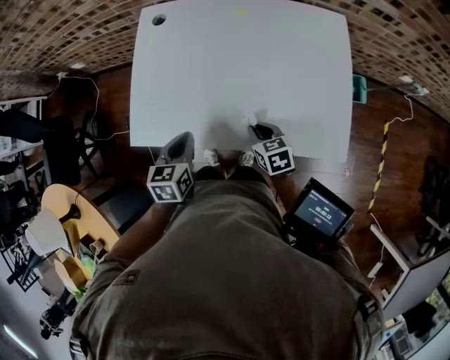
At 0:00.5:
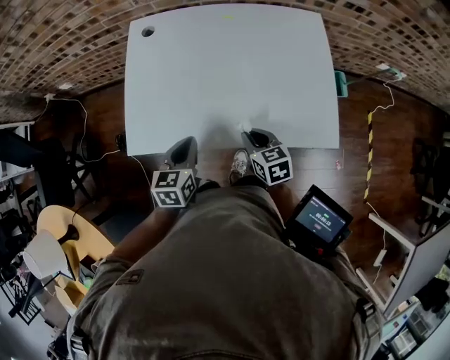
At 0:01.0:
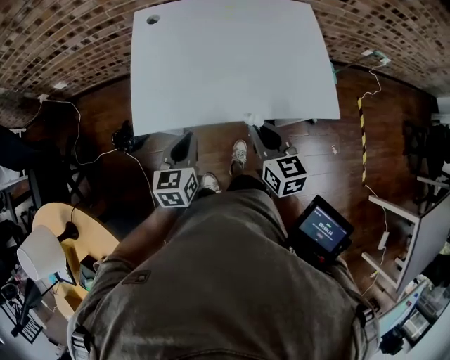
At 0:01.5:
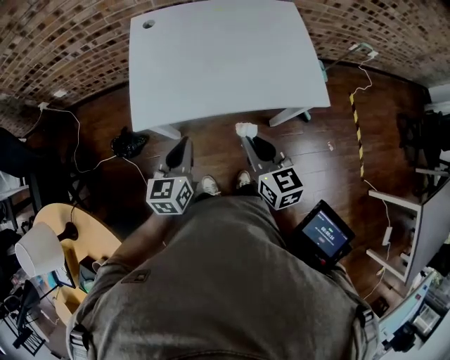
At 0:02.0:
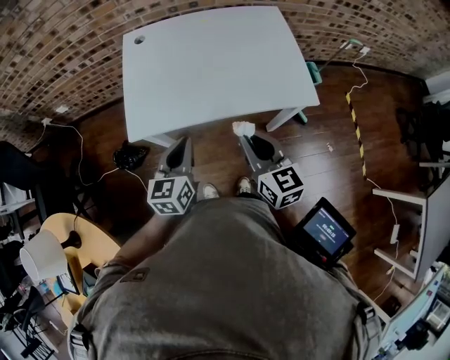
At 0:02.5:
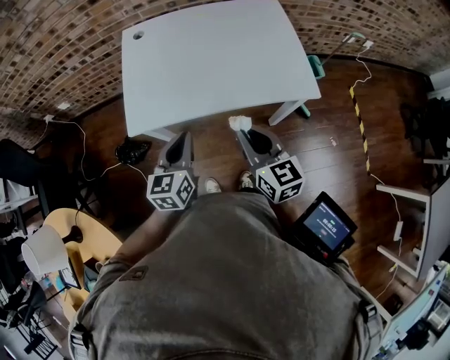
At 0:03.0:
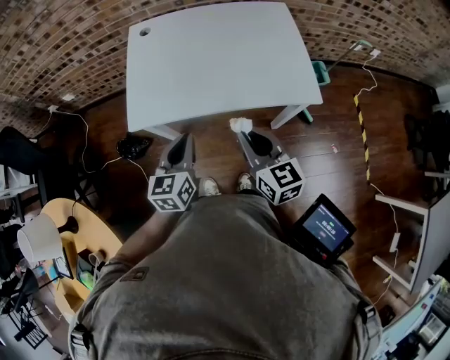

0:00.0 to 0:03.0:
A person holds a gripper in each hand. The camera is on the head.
0:00.0 to 0:01.5: The right gripper heads upward and backward, covering roughly 25 cm, and rotates about 30 degrees, while the left gripper shifts some 15 cm backward and upward, and swivels approximately 20 degrees.
0:01.5 to 0:03.0: The left gripper moves to the right, some 5 cm.

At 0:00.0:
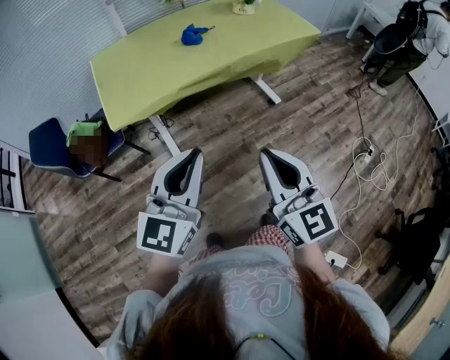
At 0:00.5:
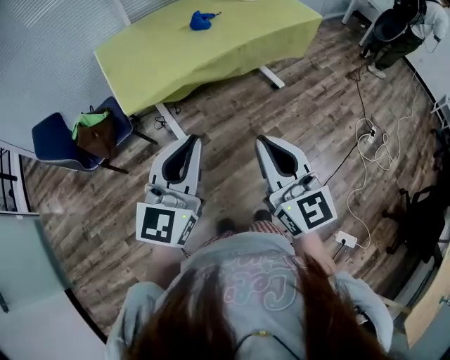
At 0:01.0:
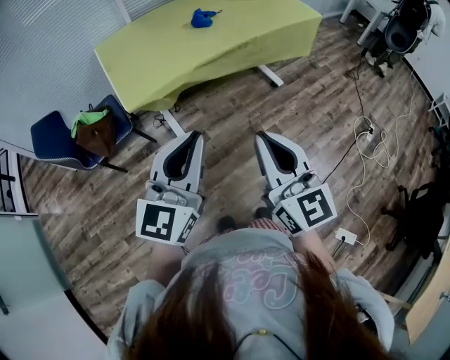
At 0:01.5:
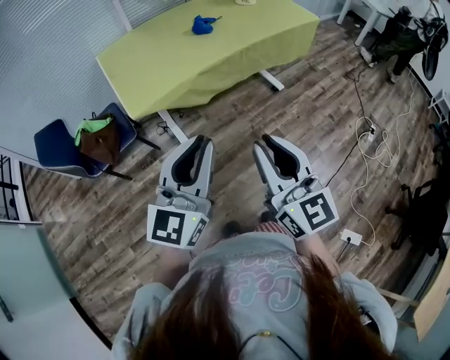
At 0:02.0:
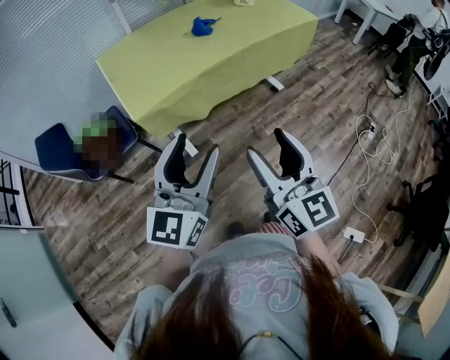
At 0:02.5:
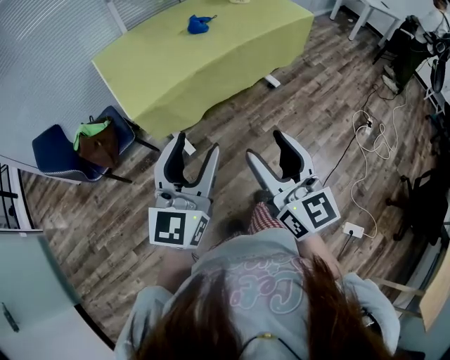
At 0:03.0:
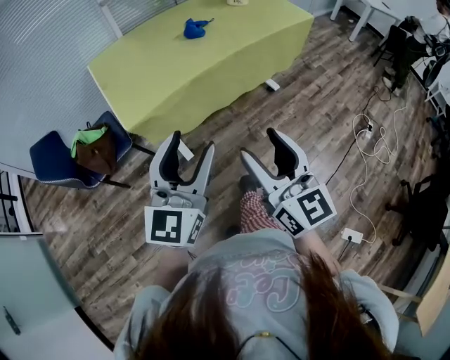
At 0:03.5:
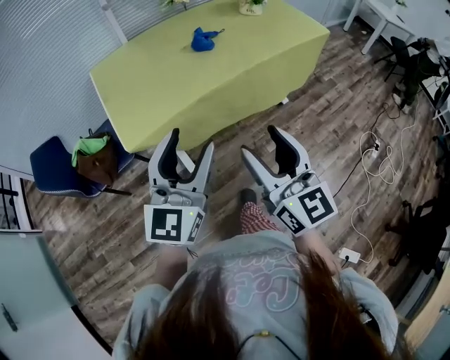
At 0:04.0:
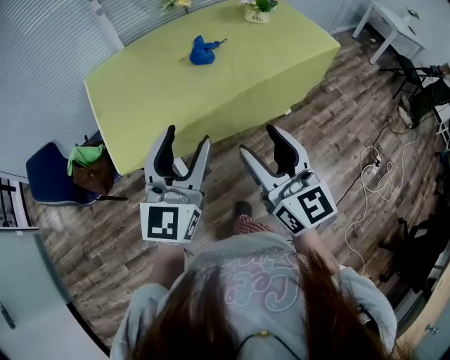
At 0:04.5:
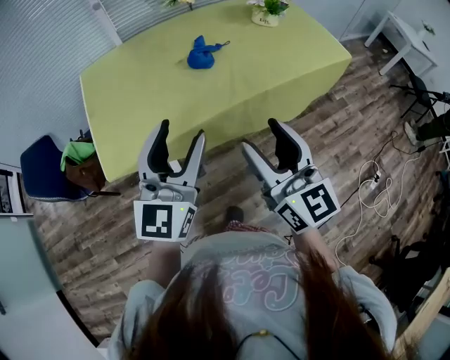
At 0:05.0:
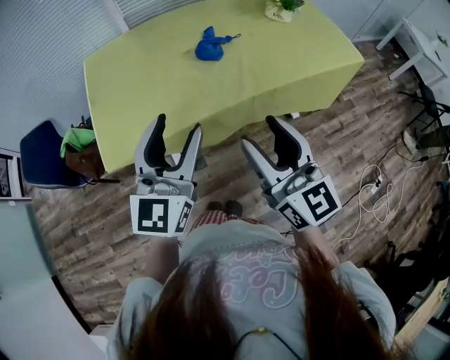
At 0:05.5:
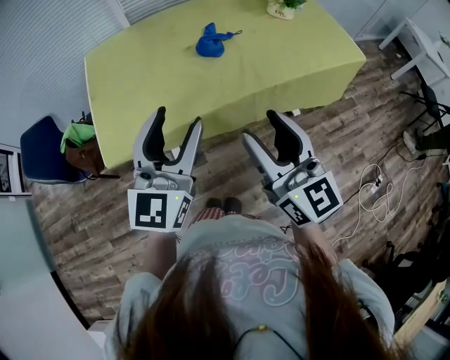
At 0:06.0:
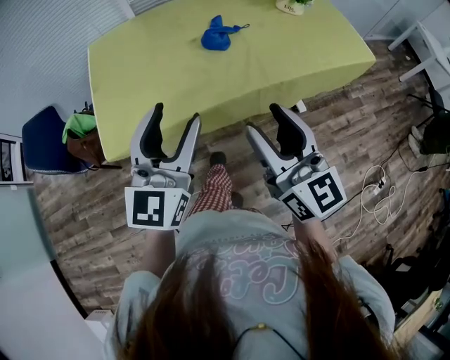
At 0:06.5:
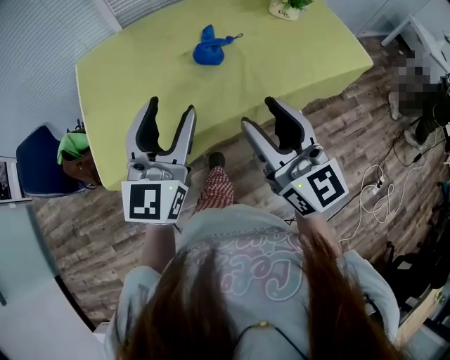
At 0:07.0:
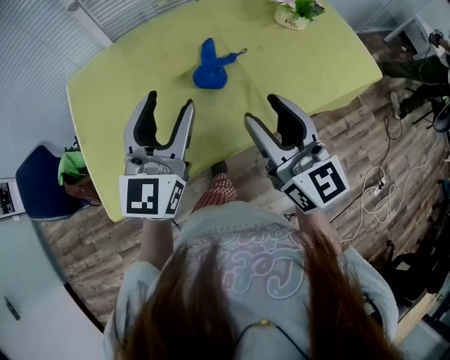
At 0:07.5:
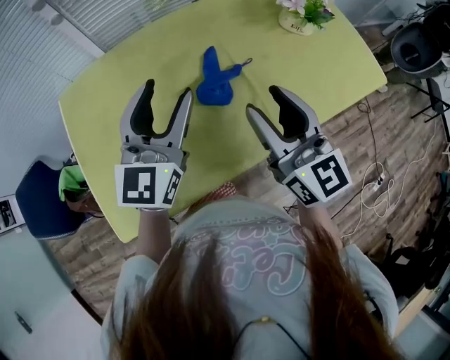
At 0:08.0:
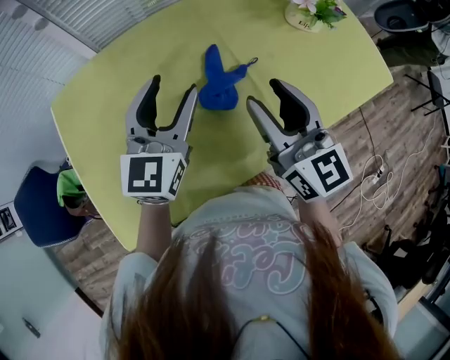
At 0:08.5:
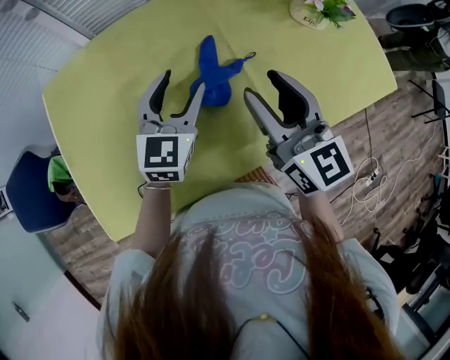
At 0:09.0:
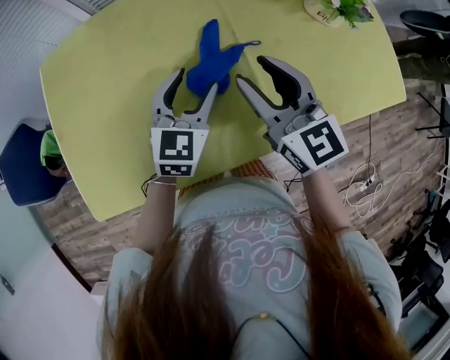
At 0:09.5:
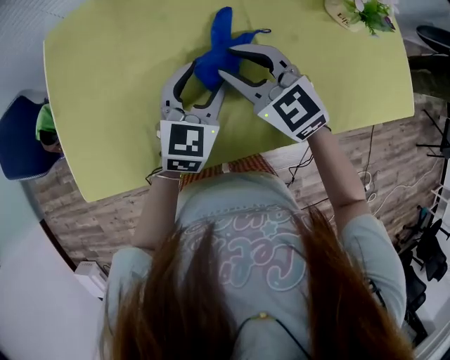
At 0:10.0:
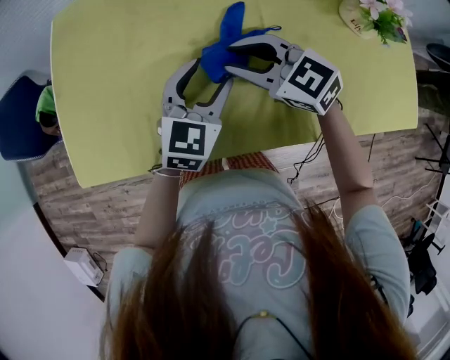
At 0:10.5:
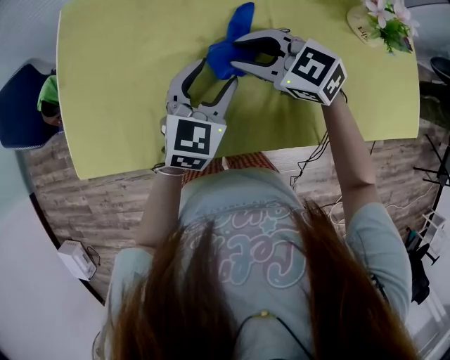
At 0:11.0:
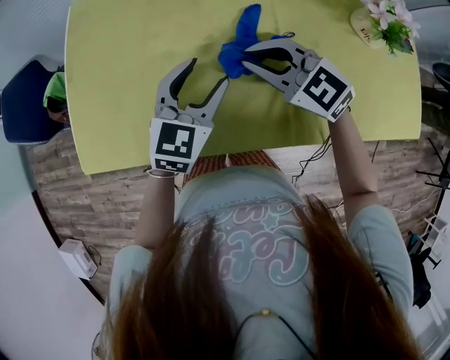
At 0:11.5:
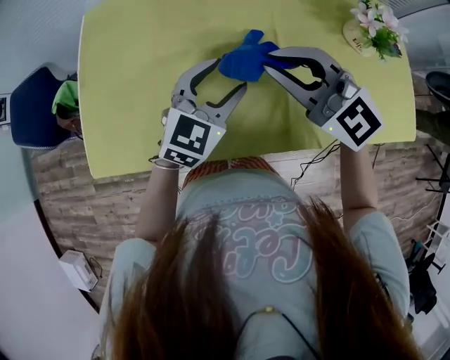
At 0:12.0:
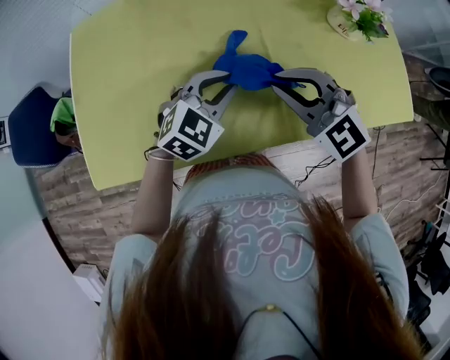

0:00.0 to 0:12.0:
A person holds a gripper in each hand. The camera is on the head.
0:00.0 to 0:02.0: The grippers both shift to the left by some 10 cm. The right gripper opens its fingers. Meanwhile the left gripper opens its fingers.
0:02.0 to 0:04.0: The two grippers go approximately 25 cm forward.
0:04.0 to 0:06.0: Both grippers travel together forward, about 10 cm.
0:06.0 to 0:08.0: The two grippers go roughly 35 cm forward.
0:08.0 to 0:10.0: Both grippers move downward, roughly 15 cm. The right gripper rotates roughly 60 degrees, while the left gripper rotates approximately 20 degrees.
0:10.0 to 0:12.0: The left gripper changes its angle by some 30 degrees, and closes. Meanwhile the right gripper goes roughly 10 cm backward and upward, and rotates about 30 degrees.

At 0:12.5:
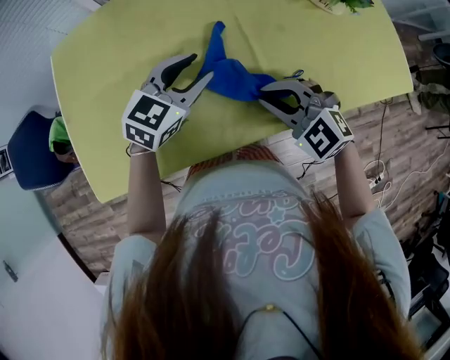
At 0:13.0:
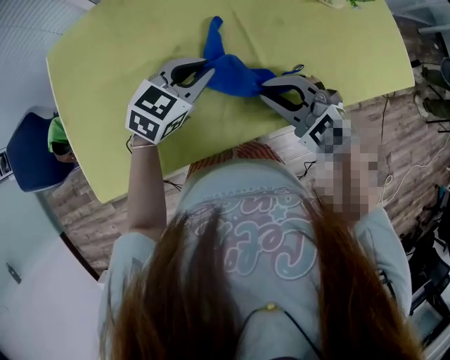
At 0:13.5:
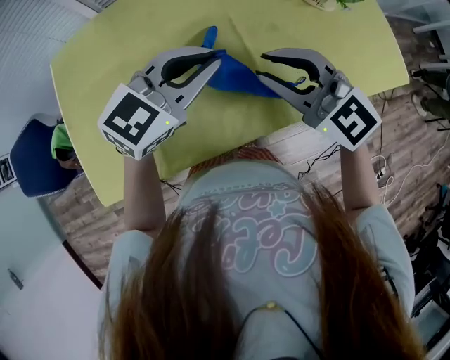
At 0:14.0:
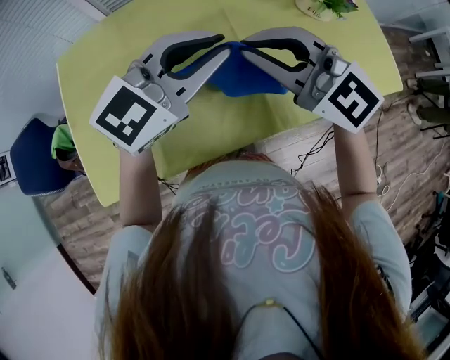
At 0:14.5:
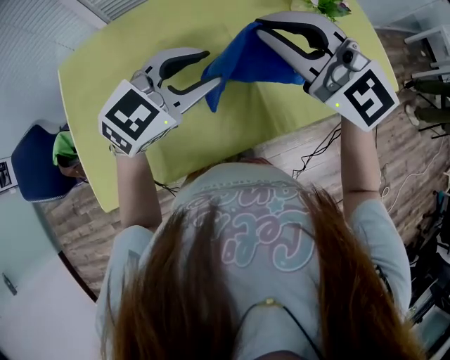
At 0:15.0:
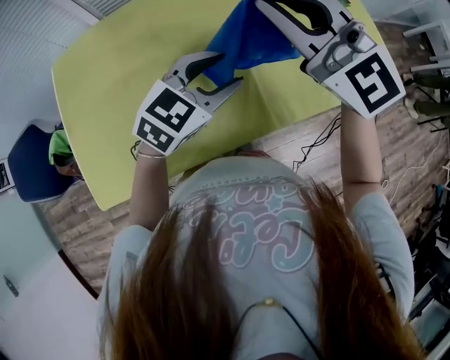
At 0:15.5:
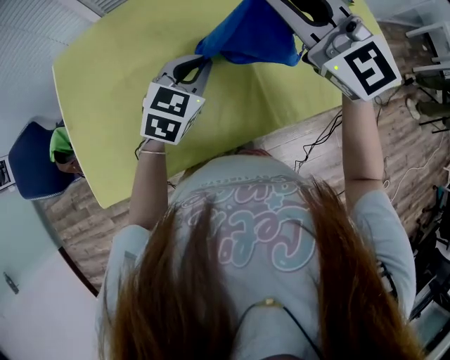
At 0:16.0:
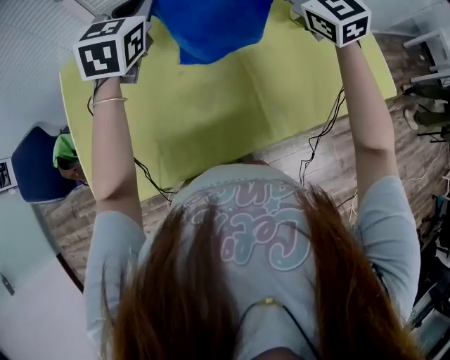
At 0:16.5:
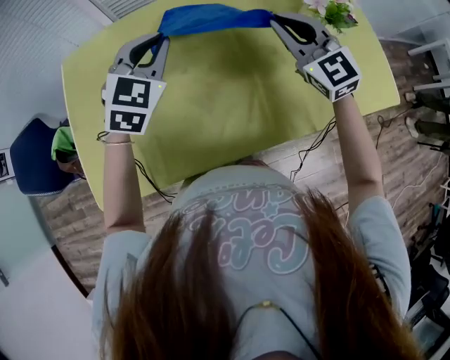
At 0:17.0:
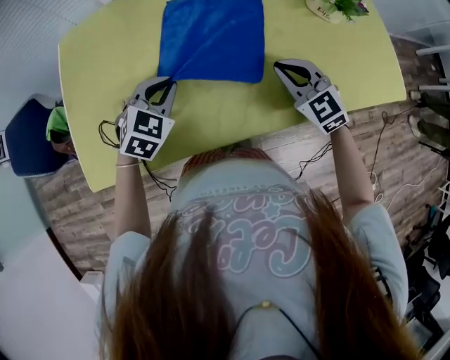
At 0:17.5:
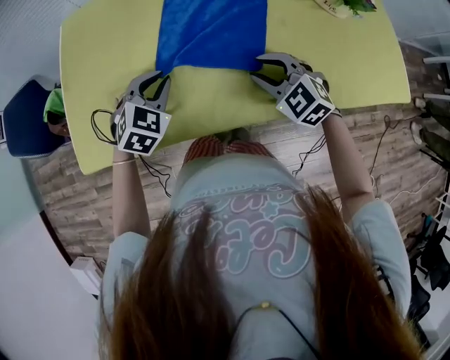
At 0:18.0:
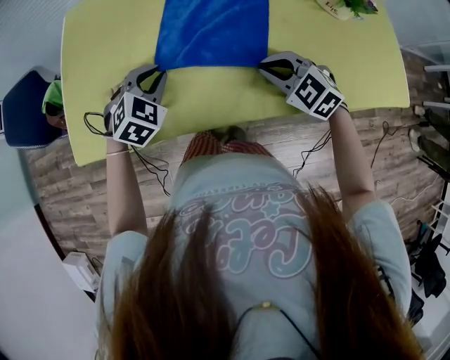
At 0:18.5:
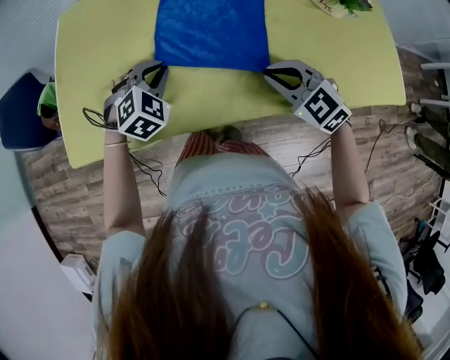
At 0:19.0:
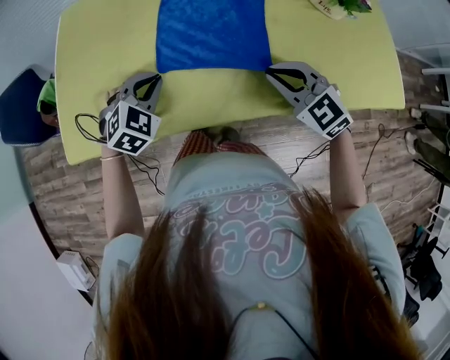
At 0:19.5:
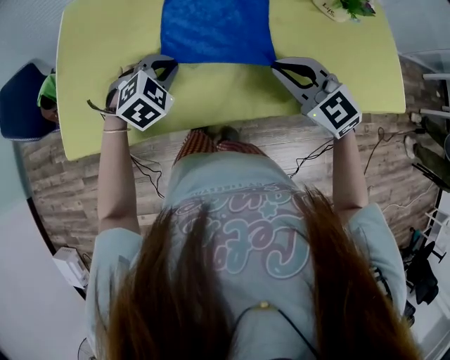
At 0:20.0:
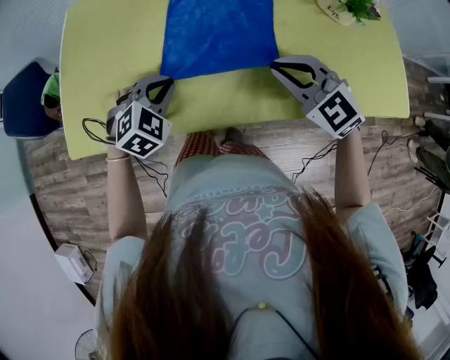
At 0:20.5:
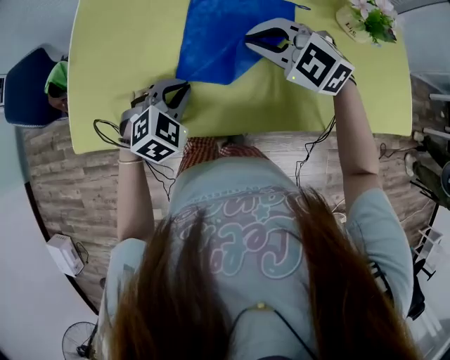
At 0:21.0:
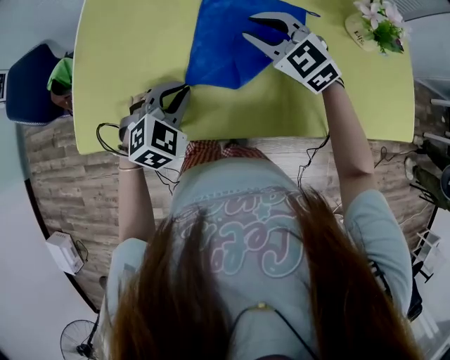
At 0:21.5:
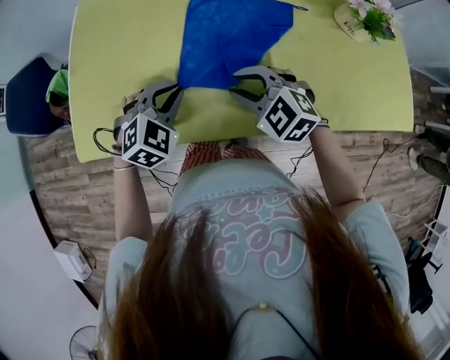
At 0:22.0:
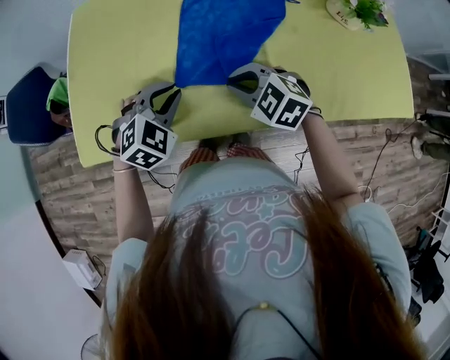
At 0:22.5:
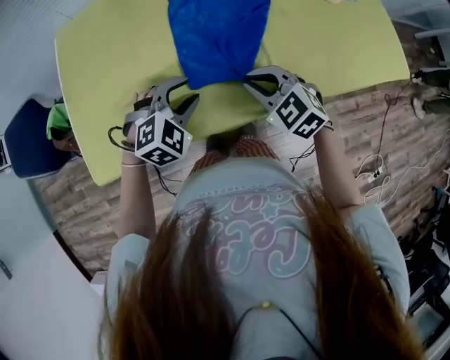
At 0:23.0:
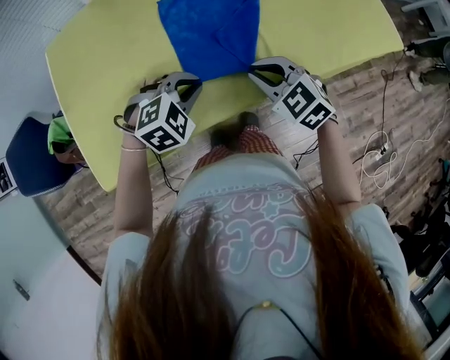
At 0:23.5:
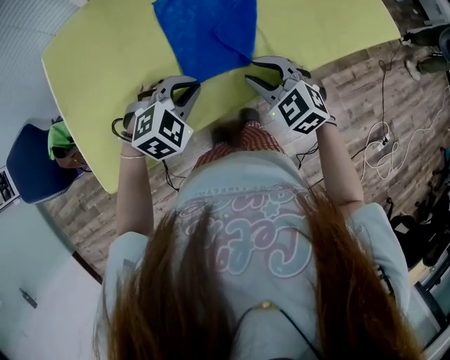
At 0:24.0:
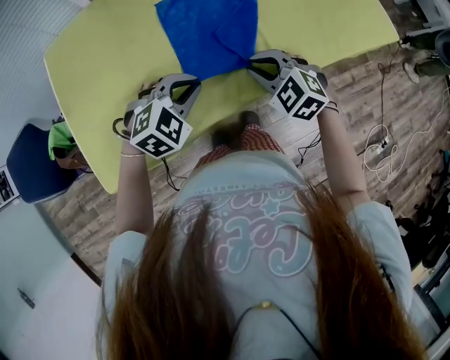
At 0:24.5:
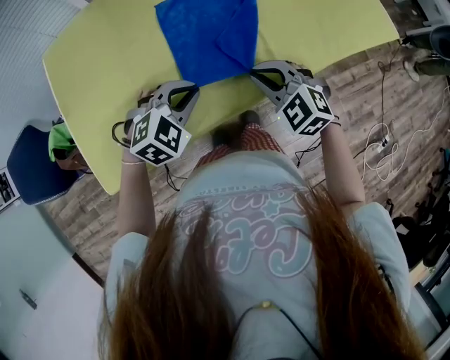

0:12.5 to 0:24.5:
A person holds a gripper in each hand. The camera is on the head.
0:12.5 to 0:14.5: The left gripper shifts roughly 10 cm upward, turns by approximately 20 degrees, and closes and opens again. The right gripper travels upward by approximately 25 cm, and tilts its fingers about 30 degrees upward.
0:14.5 to 0:16.5: The right gripper shifts some 15 cm downward, forward and to the right. The left gripper shifts approximately 15 cm forward and to the left, rotates about 40 degrees, and closes its fingers.
0:16.5 to 0:18.5: Both grippers move downward and backward, roughly 20 cm. The right gripper changes its angle by some 30 degrees, and opens, then closes once more, while the left gripper turns by roughly 30 degrees.
0:18.5 to 0:20.5: The left gripper goes about 5 cm backward, while the right gripper travels forward, to the left and upward by about 15 cm, and rotates about 20 degrees.
0:20.5 to 0:22.5: The right gripper shifts roughly 10 cm backward and downward, and turns by some 30 degrees, while the left gripper swivels approximately 20 degrees, and opens up.
0:22.5 to 0:24.5: The left gripper closes up. The right gripper opens and closes again.
